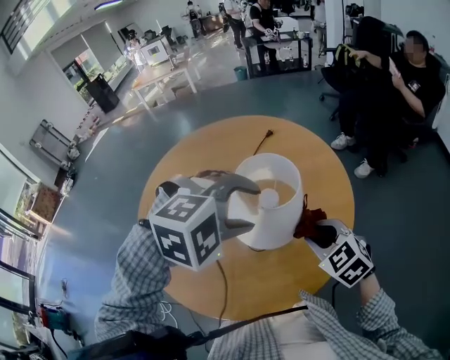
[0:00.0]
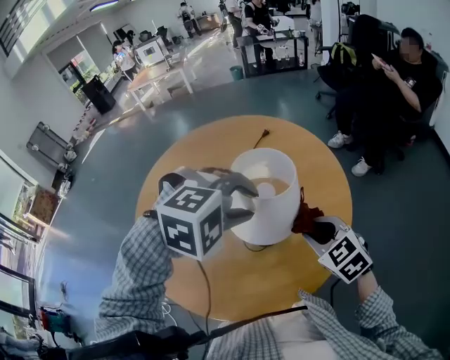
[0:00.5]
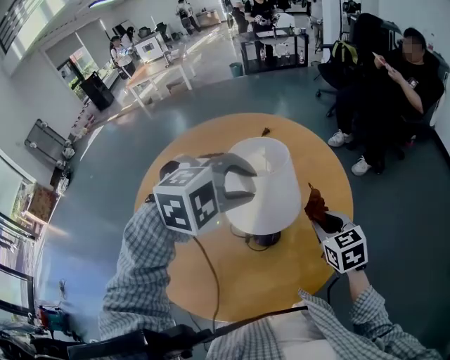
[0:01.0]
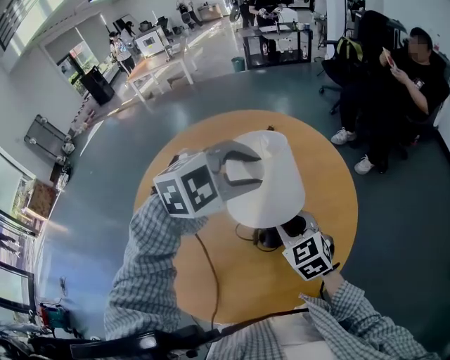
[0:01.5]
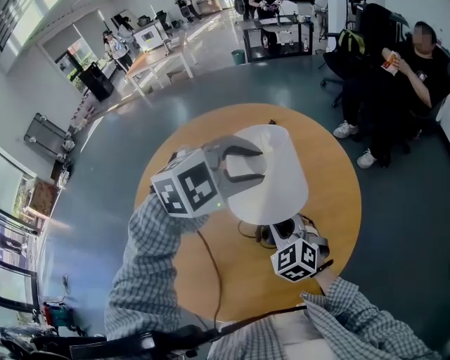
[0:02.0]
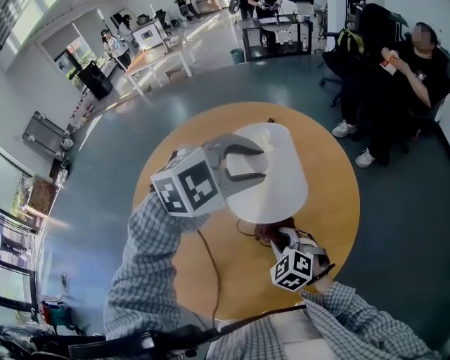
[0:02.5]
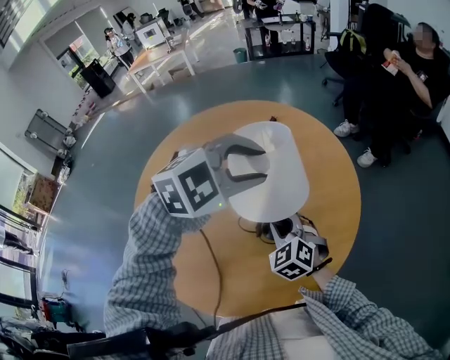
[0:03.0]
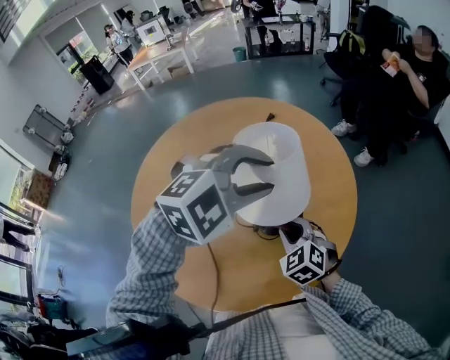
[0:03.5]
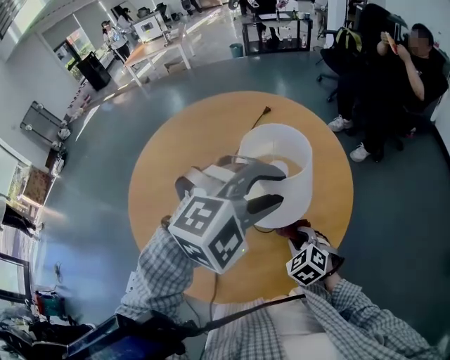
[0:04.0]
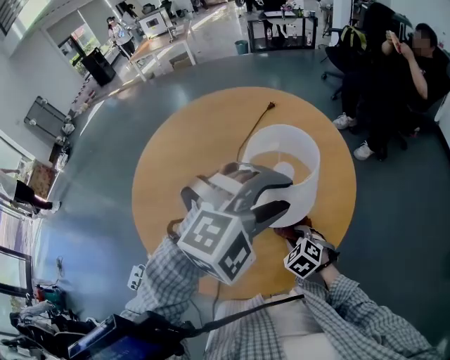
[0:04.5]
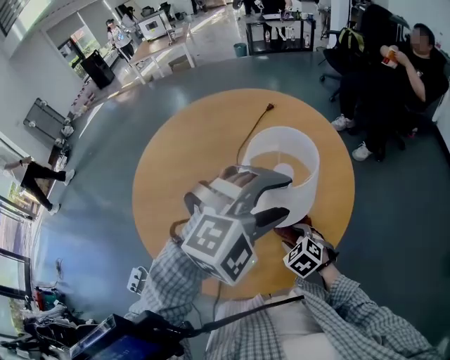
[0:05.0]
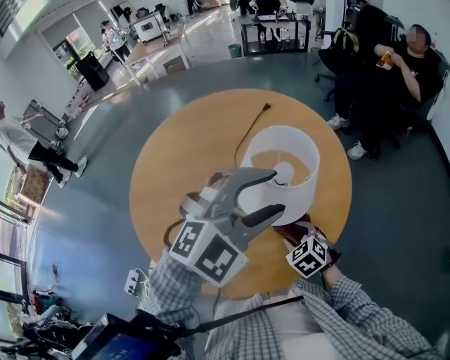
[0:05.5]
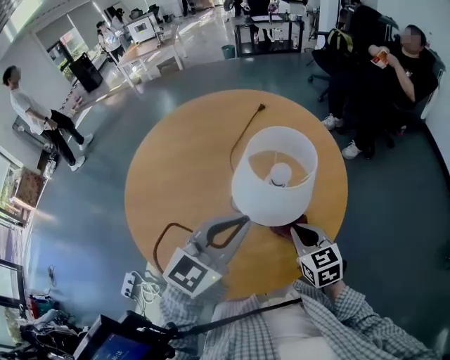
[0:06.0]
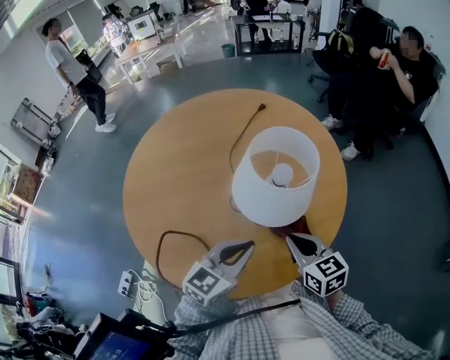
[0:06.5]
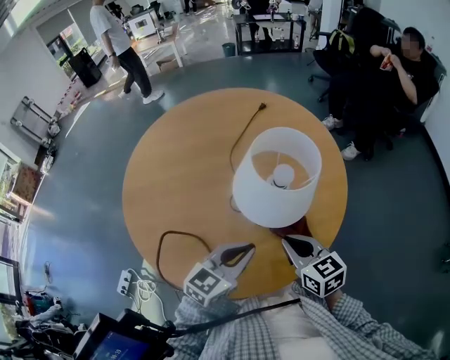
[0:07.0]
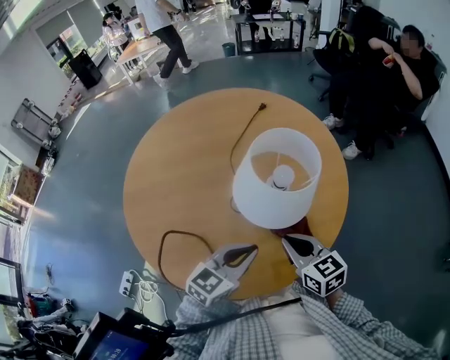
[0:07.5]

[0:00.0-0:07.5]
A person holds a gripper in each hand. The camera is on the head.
0:00.0 to 0:02.0: The right gripper goes approximately 15 cm to the left, downward and forward. Meanwhile the left gripper travels forward by approximately 10 cm, and closes its fingers.
0:02.0 to 0:04.0: The left gripper travels backward and to the right by some 10 cm; the right gripper shifts roughly 15 cm to the right, downward and backward, and changes its angle by some 20 degrees.
0:04.0 to 0:05.5: The right gripper opens its fingers; the left gripper heads backward, covering about 5 cm, changes its angle by roughly 20 degrees, and opens.
0:05.5 to 0:07.5: The left gripper shifts roughly 20 cm downward, twists roughly 60 degrees counterclockwise, seen from behind, and closes, while the right gripper travels upward by some 10 cm, tilts its fingers roughly 30 degrees upward, and closes its fingers.

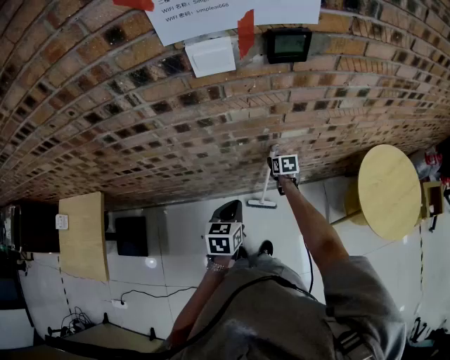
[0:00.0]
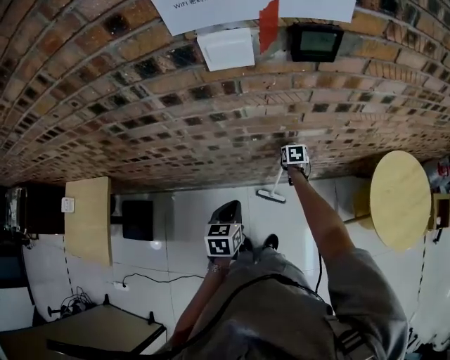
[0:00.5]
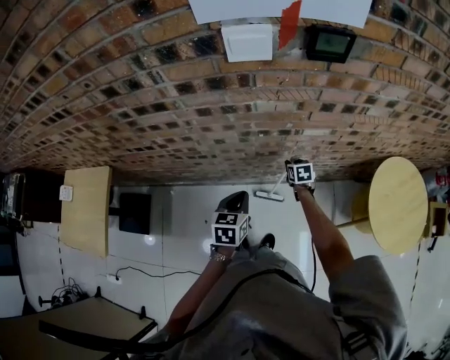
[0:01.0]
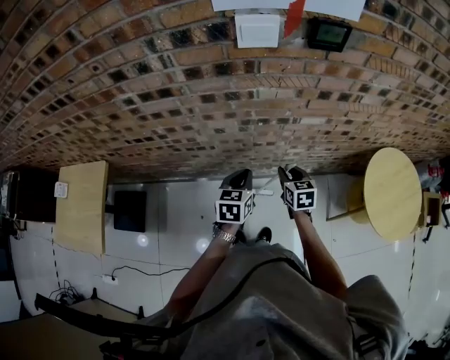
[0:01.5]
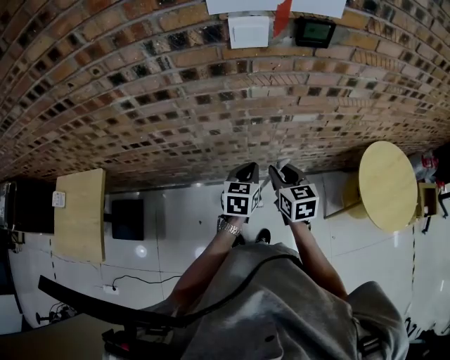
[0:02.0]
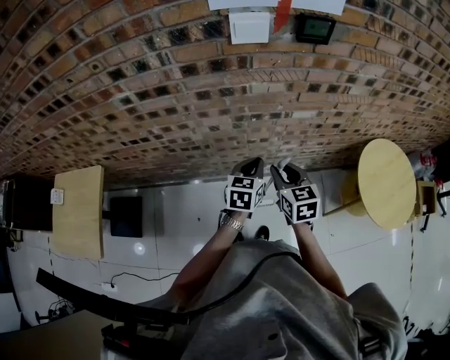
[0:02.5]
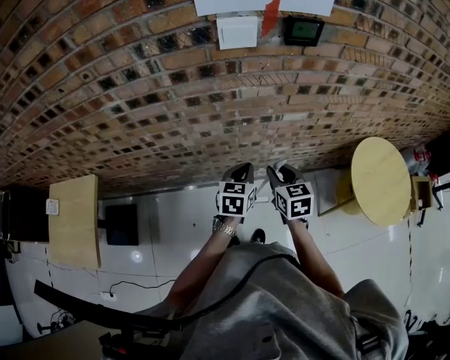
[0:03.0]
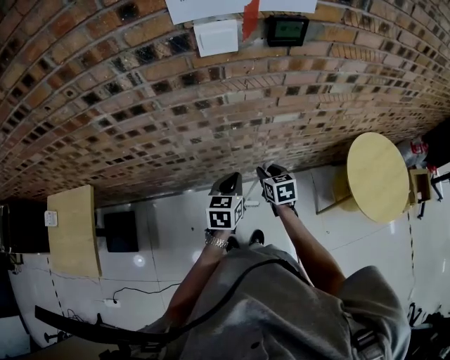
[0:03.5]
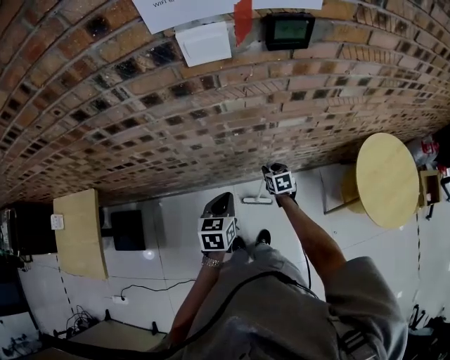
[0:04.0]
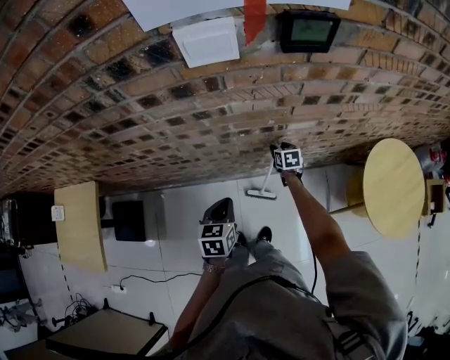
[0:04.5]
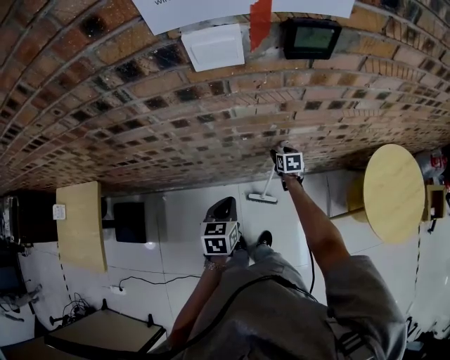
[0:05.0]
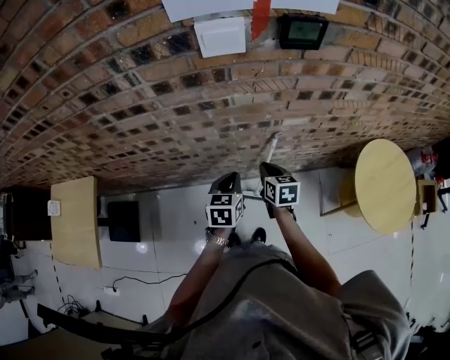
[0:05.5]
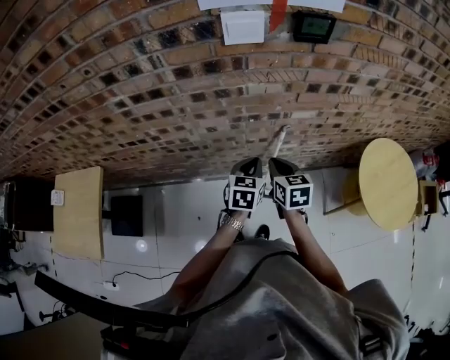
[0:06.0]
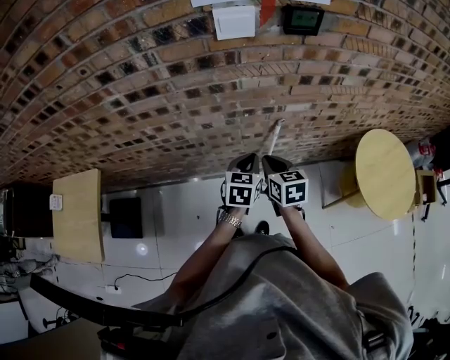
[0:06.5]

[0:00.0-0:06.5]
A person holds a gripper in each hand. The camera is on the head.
0:00.0 to 0:02.0: The right gripper goes about 30 cm upward and backward, and rotates approximately 30 degrees.
0:02.0 to 0:04.5: The right gripper heads downward and forward, covering about 35 cm, and changes its angle by roughly 20 degrees; the left gripper shifts approximately 5 cm downward.
0:04.5 to 0:06.5: The right gripper travels upward, backward and to the left by about 35 cm, and closes; the left gripper moves to the right and upward, about 10 cm.

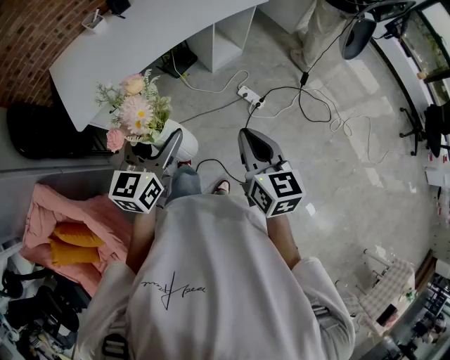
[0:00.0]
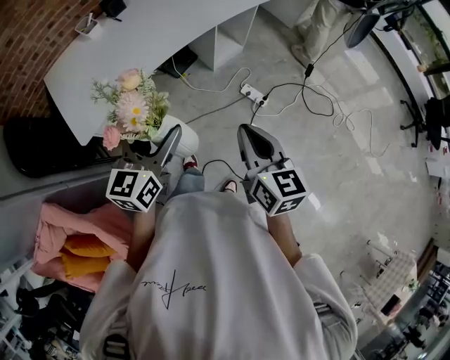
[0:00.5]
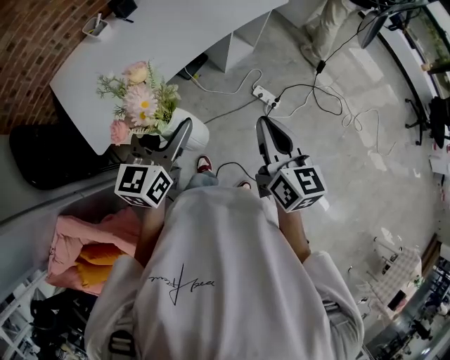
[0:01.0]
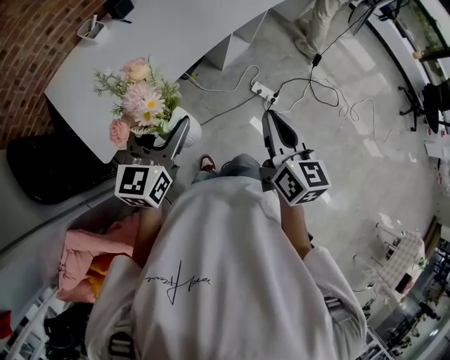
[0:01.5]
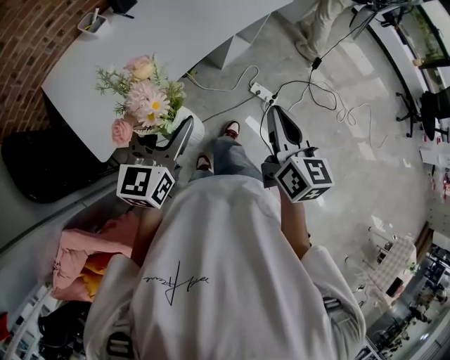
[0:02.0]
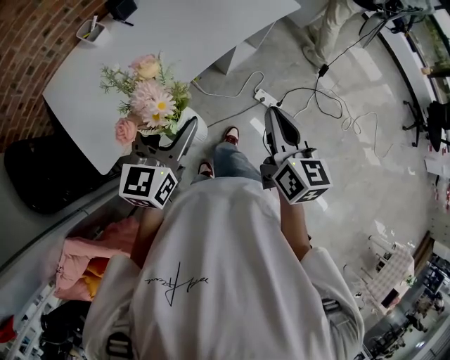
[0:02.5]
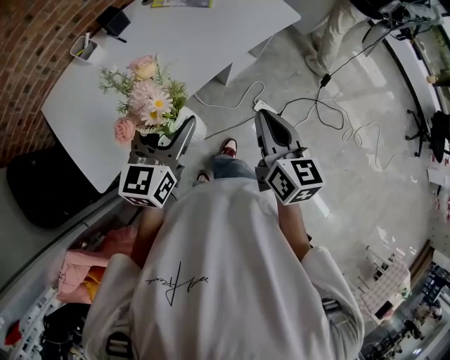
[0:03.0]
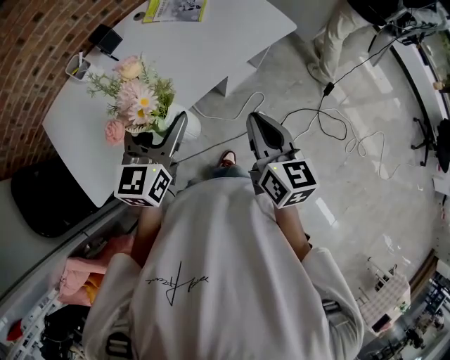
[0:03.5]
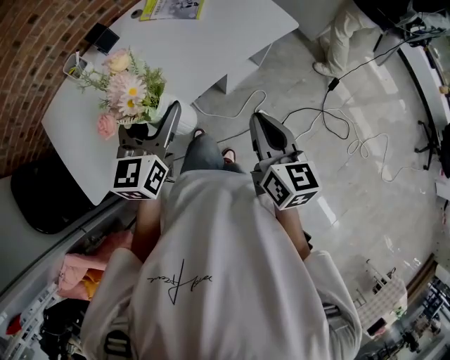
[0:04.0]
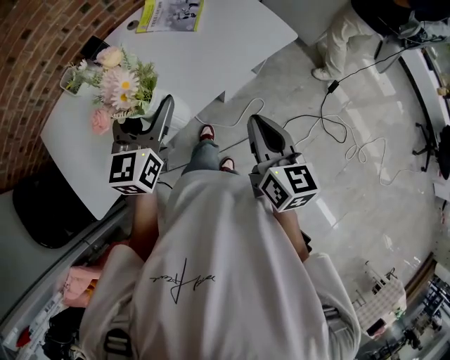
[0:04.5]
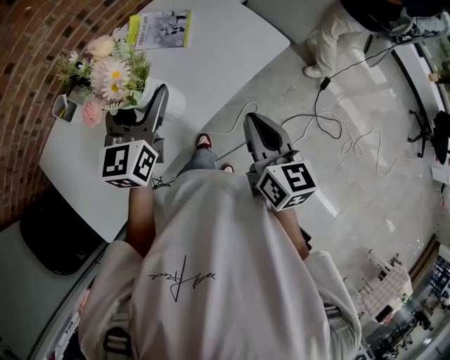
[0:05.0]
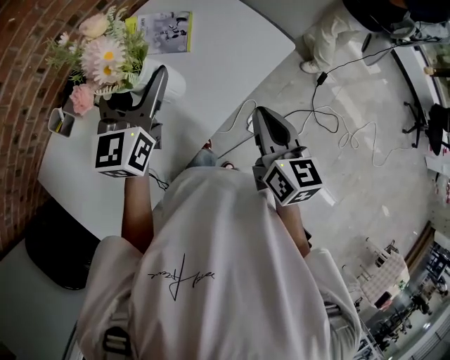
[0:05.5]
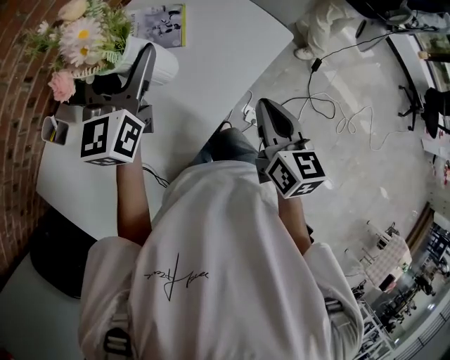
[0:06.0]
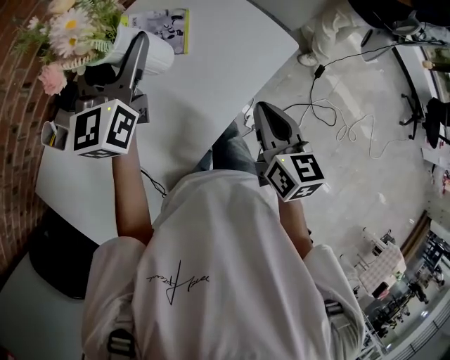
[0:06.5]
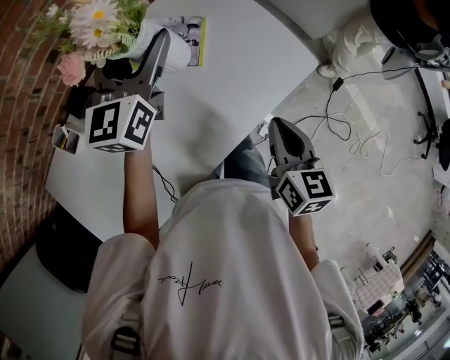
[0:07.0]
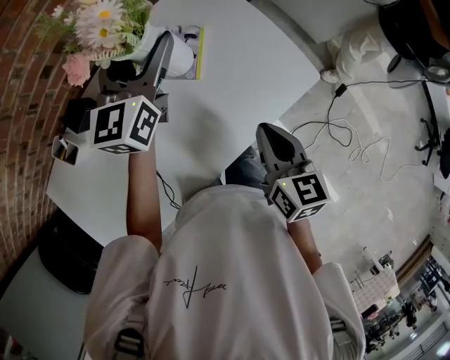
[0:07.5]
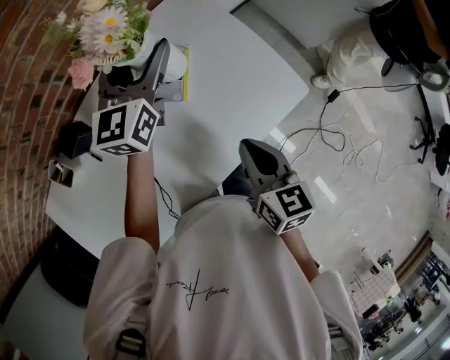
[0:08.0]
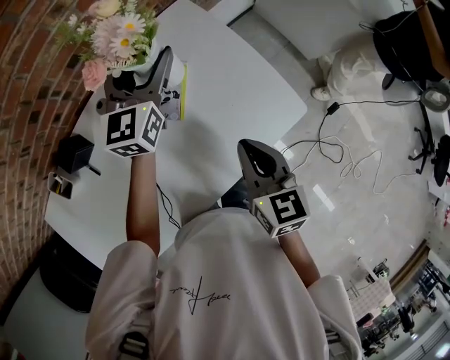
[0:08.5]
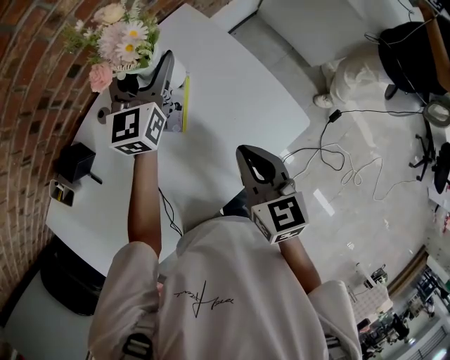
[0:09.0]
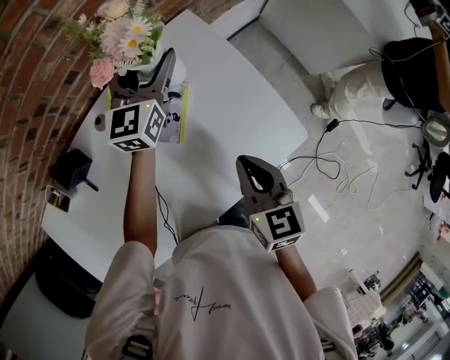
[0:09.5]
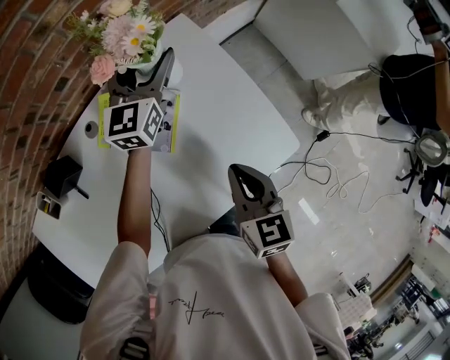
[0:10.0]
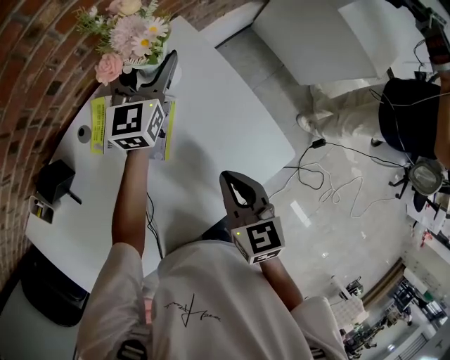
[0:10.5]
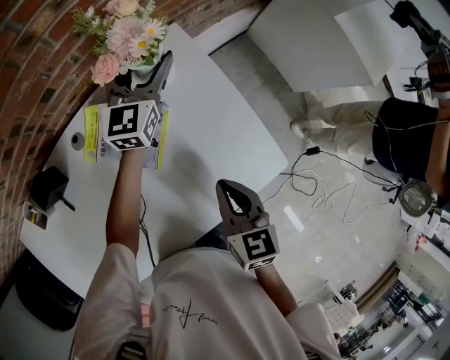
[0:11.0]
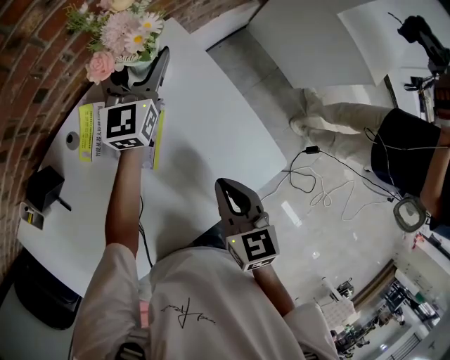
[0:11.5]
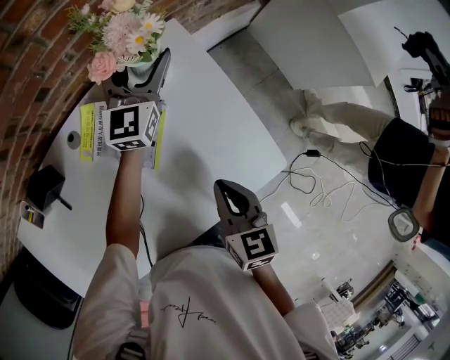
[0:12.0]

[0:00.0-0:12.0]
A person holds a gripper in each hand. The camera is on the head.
0:00.0 to 0:02.0: The left gripper shifts roughly 25 cm to the left and forward; the right gripper heads forward and to the left, covering approximately 20 cm.
0:02.0 to 0:04.0: The grippers both shift forward and to the right by roughly 25 cm.
0:04.0 to 0:06.0: The left gripper heads forward, covering roughly 30 cm. Meanwhile the right gripper moves forward, some 20 cm.
0:06.0 to 0:08.0: The right gripper shifts about 15 cm forward and downward, while the left gripper travels forward by approximately 20 cm.
0:08.0 to 0:10.0: The right gripper moves forward, approximately 10 cm; the left gripper goes roughly 15 cm forward and downward.
0:10.0 to 0:12.0: There are only small adjustments of the grippers.
